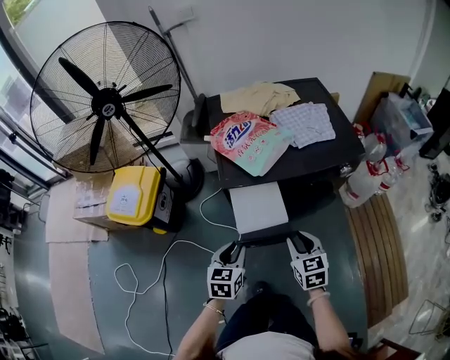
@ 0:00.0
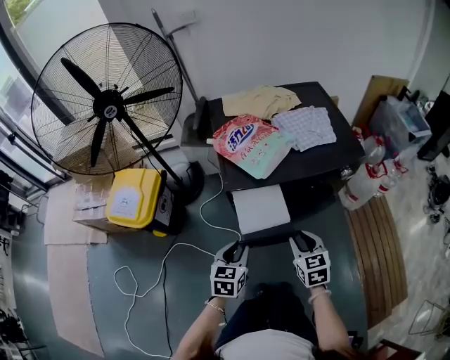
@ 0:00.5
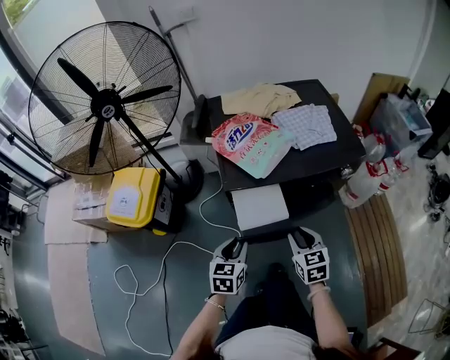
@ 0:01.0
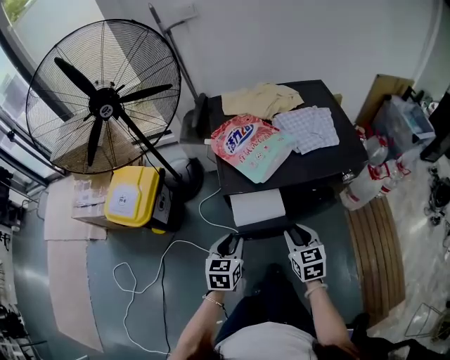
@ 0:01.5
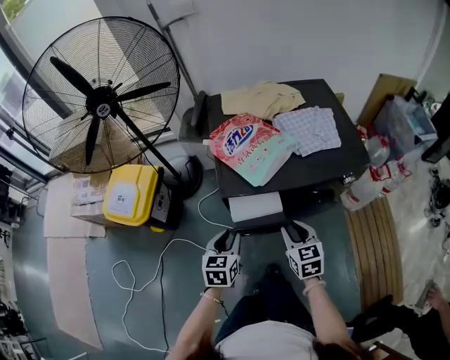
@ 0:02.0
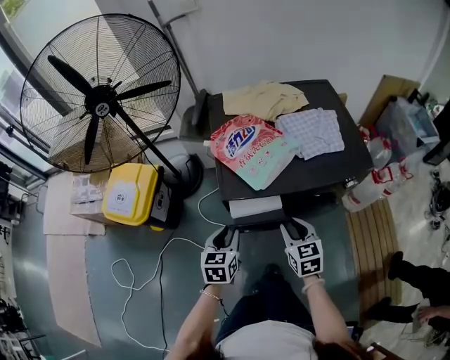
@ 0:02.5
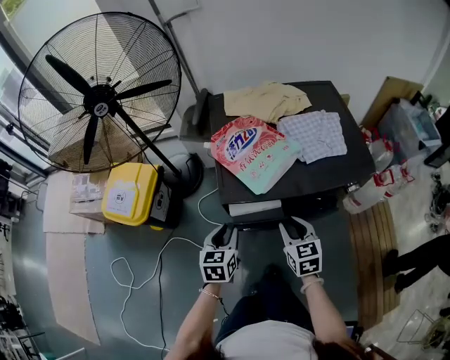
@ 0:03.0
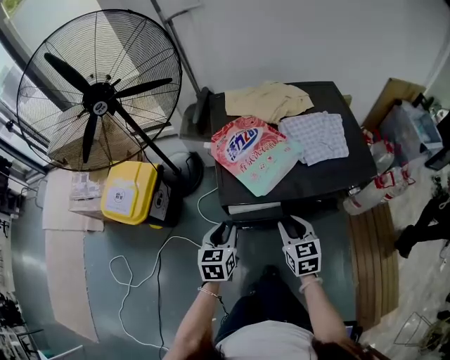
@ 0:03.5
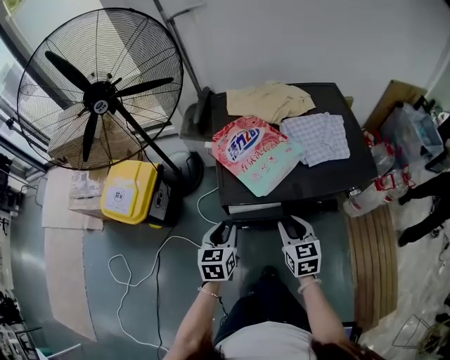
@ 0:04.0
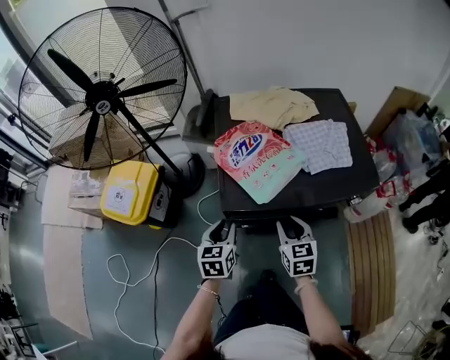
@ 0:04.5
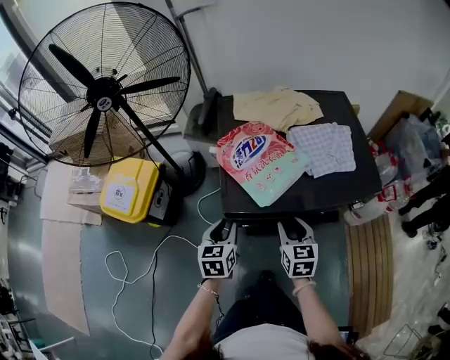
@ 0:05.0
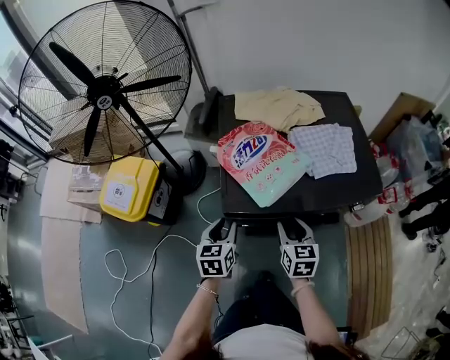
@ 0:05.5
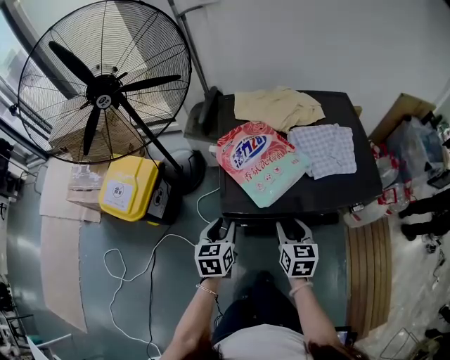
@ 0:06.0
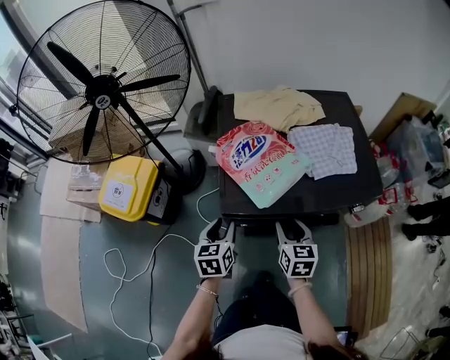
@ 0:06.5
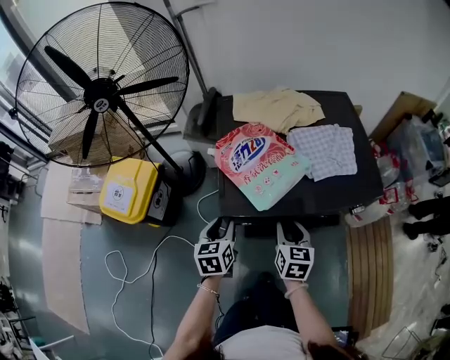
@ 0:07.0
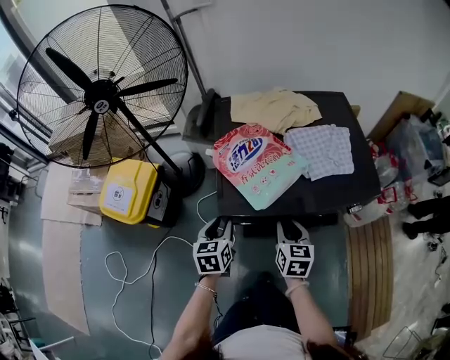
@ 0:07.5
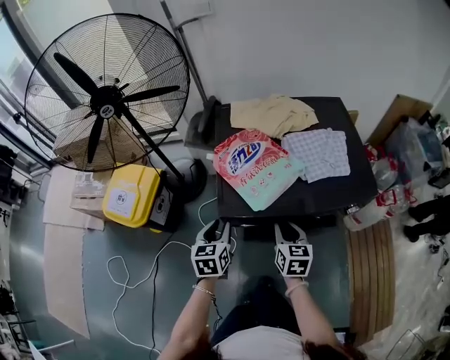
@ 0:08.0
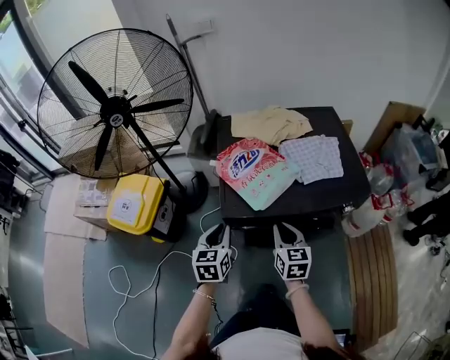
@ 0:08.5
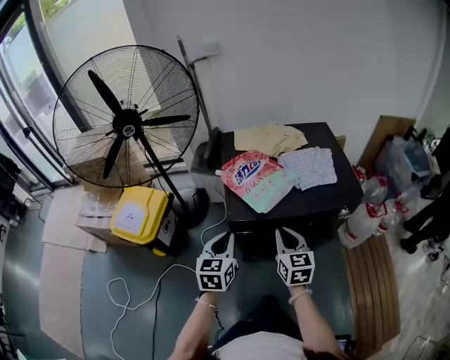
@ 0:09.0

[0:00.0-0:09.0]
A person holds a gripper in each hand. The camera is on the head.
0:00.0 to 0:02.0: Both grippers travel together forward, approximately 10 cm.
0:02.0 to 0:04.5: Both grippers travel together forward, roughly 10 cm.
0:04.5 to 0:07.0: The grippers make only small movements.
0:07.0 to 0:09.0: The grippers both shift upward and backward by approximately 15 cm. The right gripper closes, while the left gripper closes.

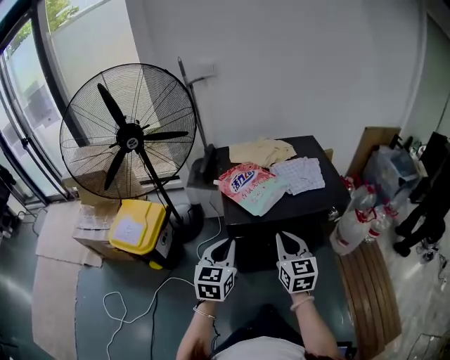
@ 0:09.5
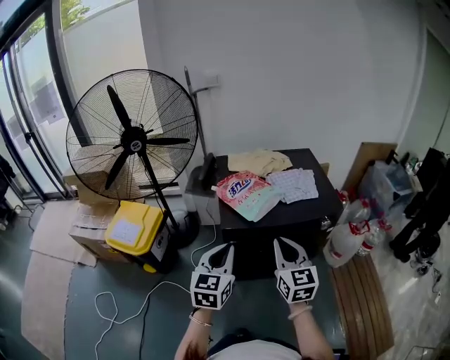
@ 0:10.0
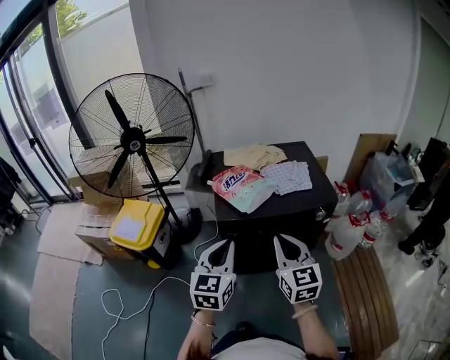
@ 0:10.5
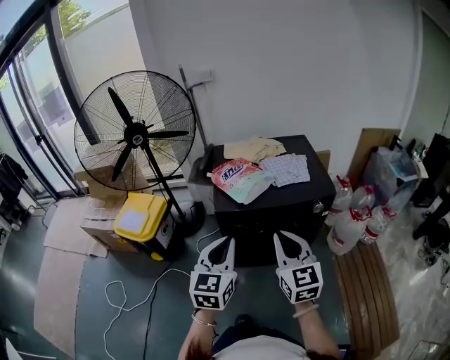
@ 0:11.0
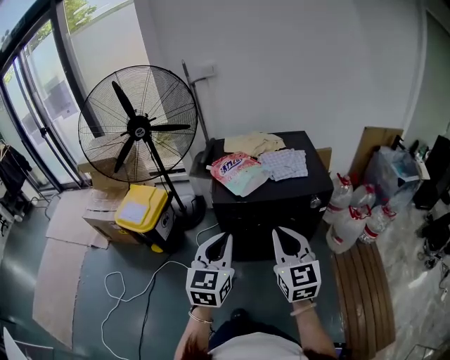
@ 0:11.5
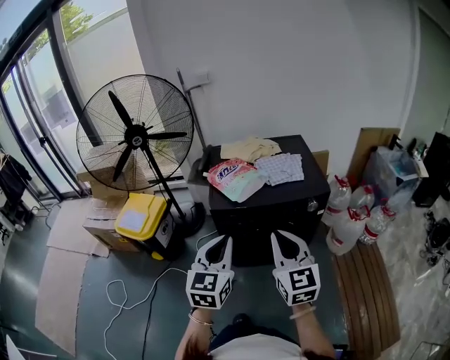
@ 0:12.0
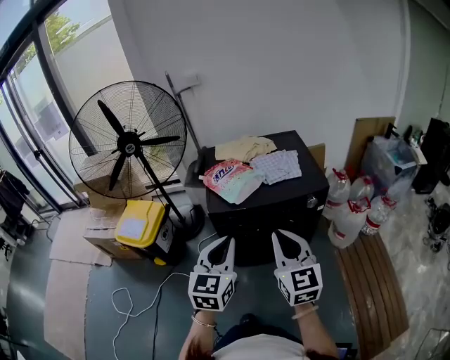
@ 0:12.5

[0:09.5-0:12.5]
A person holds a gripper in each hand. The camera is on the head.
0:09.5 to 0:11.0: Both grippers move backward, upward and to the right, roughly 15 cm.
0:11.0 to 0:12.5: The grippers stay close to where they were, moving slightly.

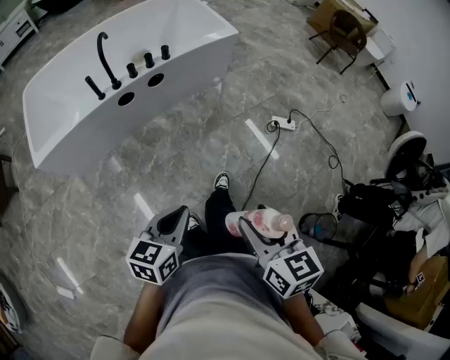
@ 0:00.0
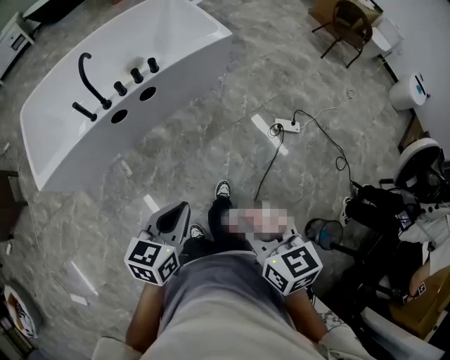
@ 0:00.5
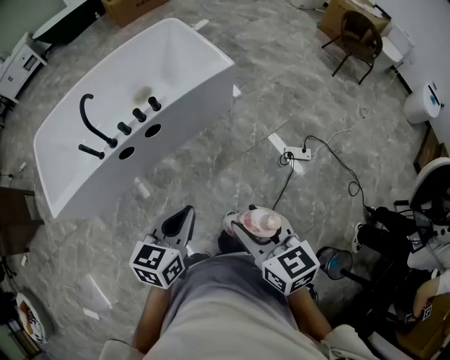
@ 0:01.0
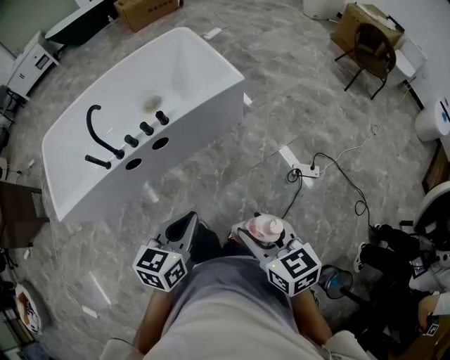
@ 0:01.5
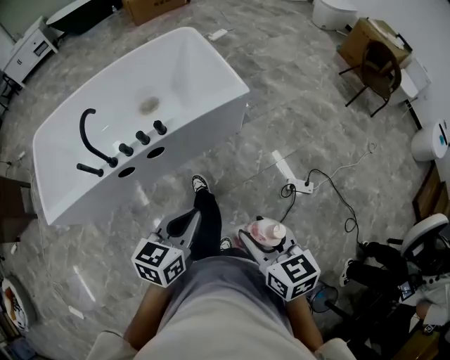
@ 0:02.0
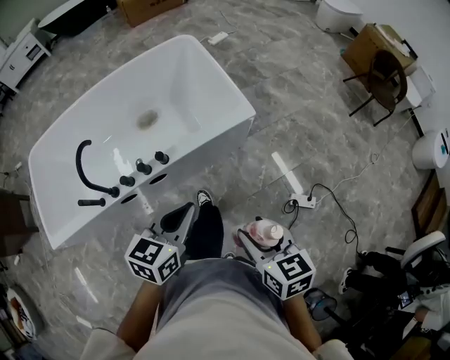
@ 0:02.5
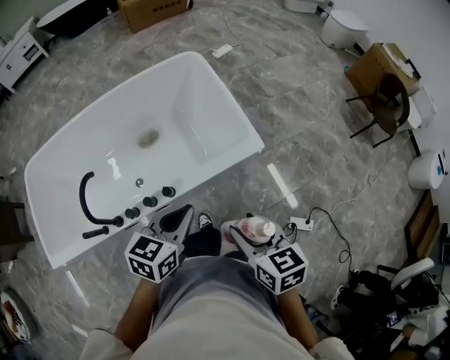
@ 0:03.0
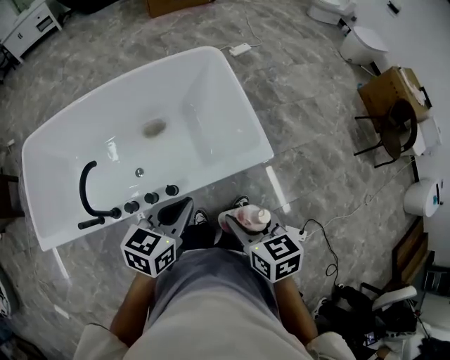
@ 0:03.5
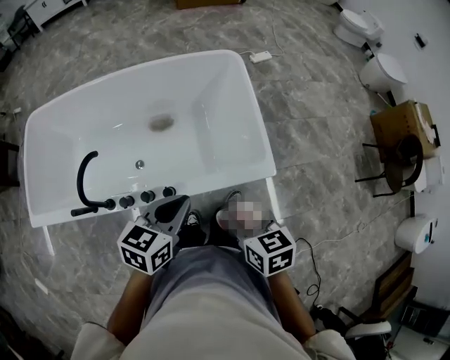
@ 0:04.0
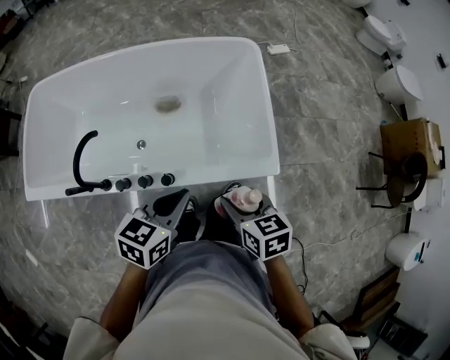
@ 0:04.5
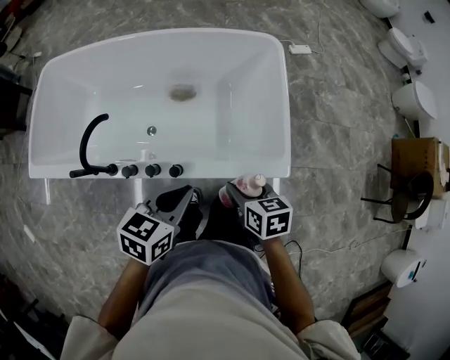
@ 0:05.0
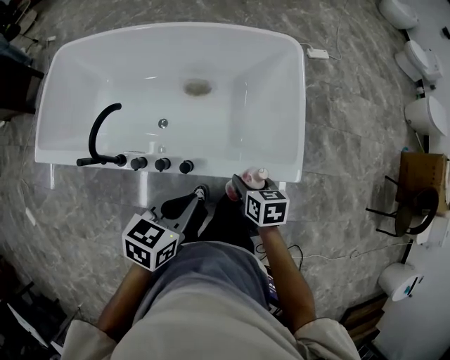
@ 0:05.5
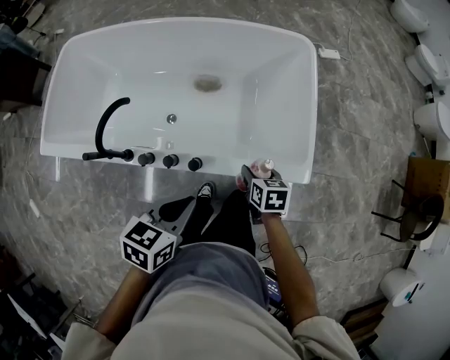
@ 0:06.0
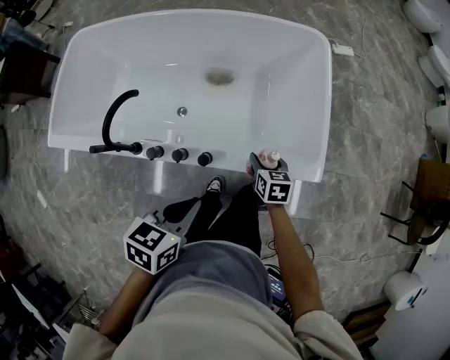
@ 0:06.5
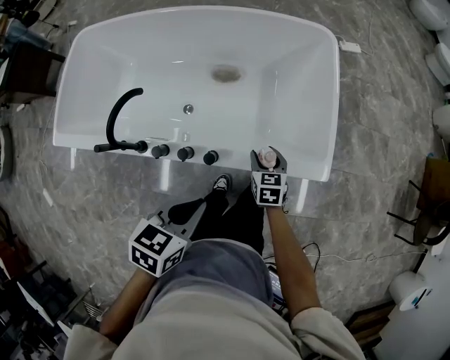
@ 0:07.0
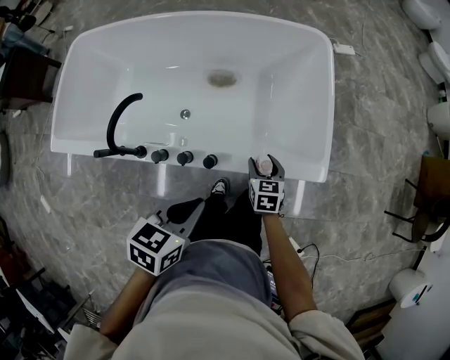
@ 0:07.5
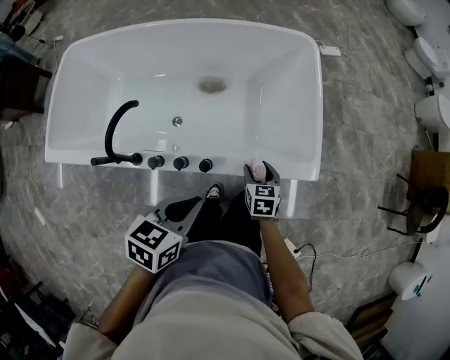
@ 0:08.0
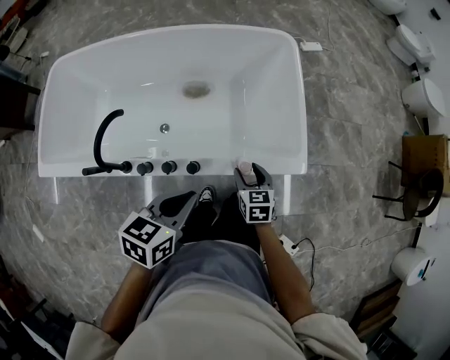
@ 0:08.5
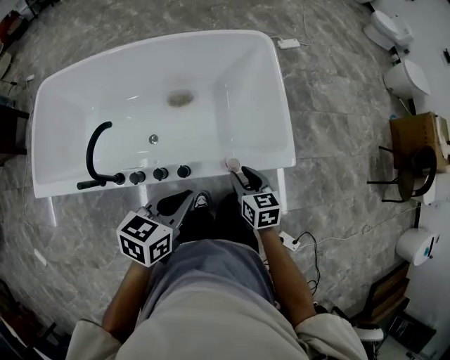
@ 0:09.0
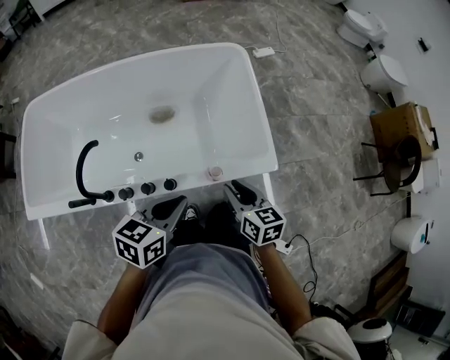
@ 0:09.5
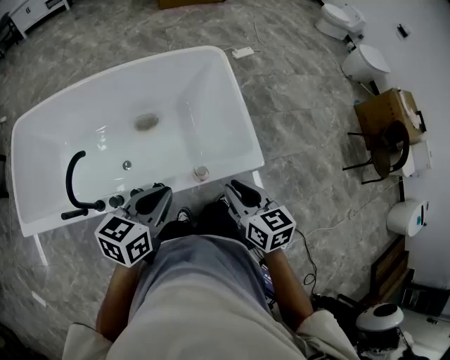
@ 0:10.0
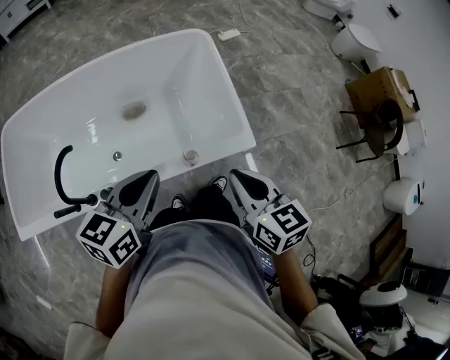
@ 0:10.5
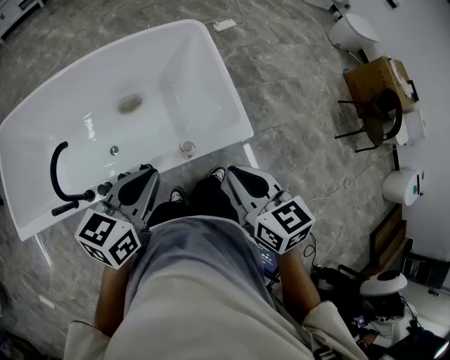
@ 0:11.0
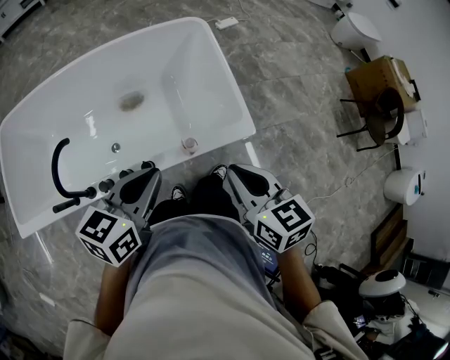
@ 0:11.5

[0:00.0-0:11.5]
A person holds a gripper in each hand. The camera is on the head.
0:00.0 to 0:02.0: The pair of grippers is taken forward, approximately 40 cm.
0:02.0 to 0:04.0: The pair of grippers is taken forward, roughly 50 cm. The right gripper turns by some 20 degrees.
0:04.0 to 0:06.0: The left gripper is displaced downward and to the left by roughly 10 cm. The right gripper is displaced downward and forward by some 25 cm.
0:06.0 to 0:07.5: The right gripper shifts by approximately 5 cm.
0:07.5 to 0:09.5: The left gripper ends up roughly 5 cm from where it was. The right gripper is displaced upward by approximately 20 cm, rotates approximately 20 degrees, and closes.
0:09.5 to 0:11.5: The left gripper goes approximately 5 cm upward, while the right gripper shifts about 15 cm upward, and closes up.

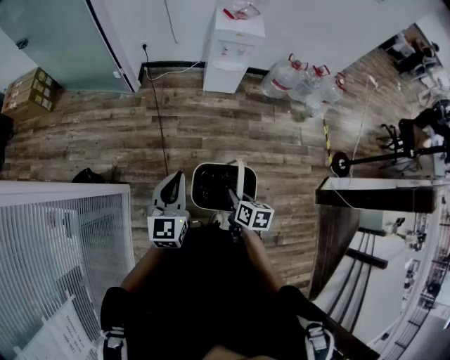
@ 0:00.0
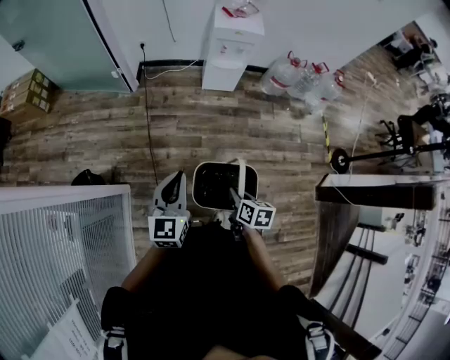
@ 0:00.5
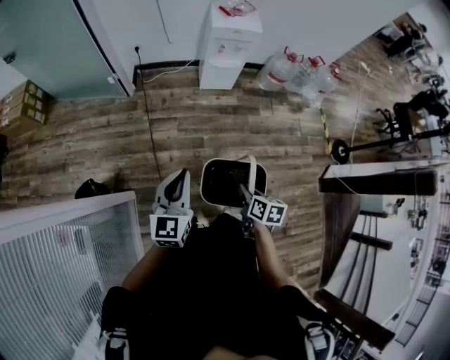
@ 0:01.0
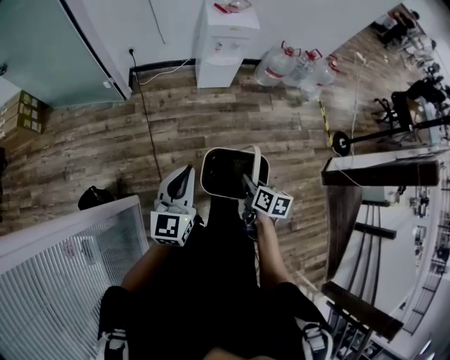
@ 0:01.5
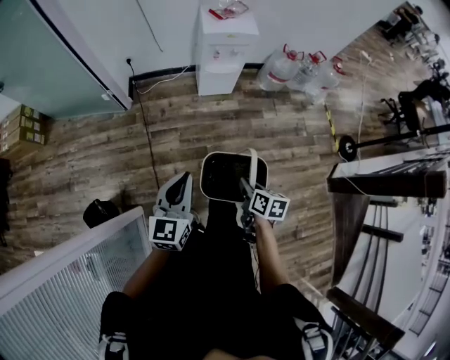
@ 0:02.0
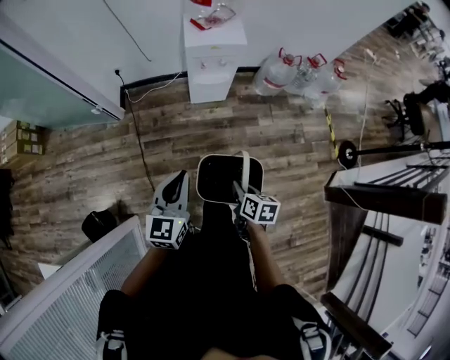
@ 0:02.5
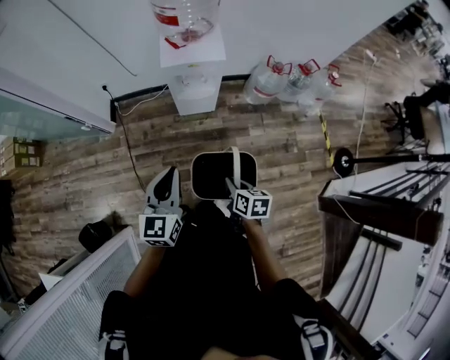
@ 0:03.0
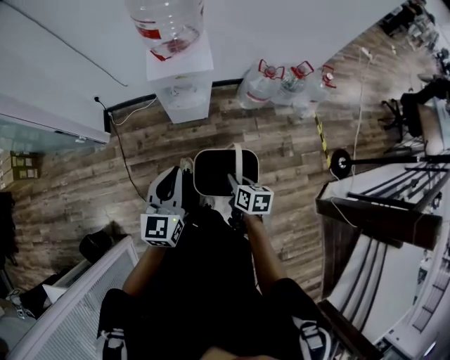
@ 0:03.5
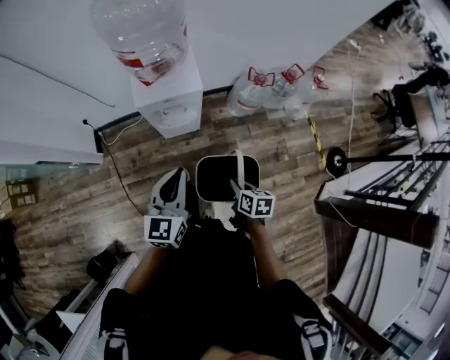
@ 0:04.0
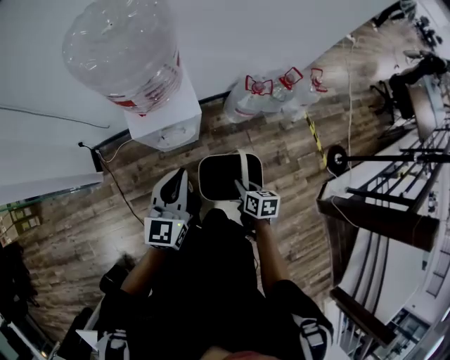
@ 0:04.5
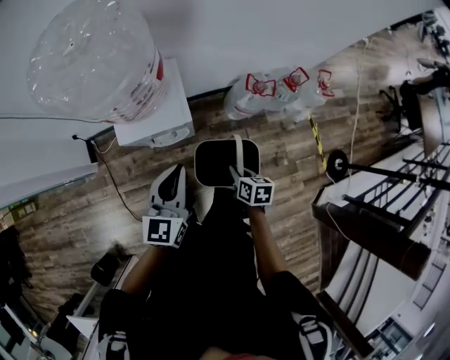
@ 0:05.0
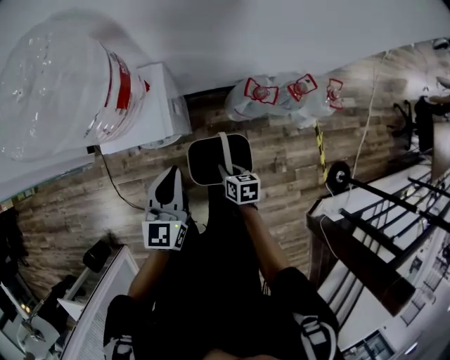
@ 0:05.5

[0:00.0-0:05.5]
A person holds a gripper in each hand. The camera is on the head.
0:00.0 to 0:02.0: The grippers both shift forward by some 15 cm.
0:02.0 to 0:03.5: Both grippers travel together forward and to the right, roughly 35 cm.
0:03.5 to 0:05.5: The two grippers go roughly 35 cm forward and to the right.
